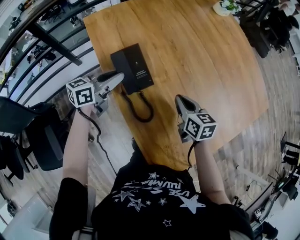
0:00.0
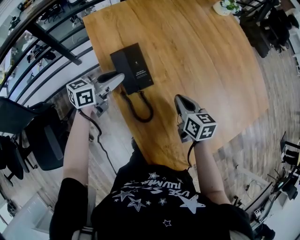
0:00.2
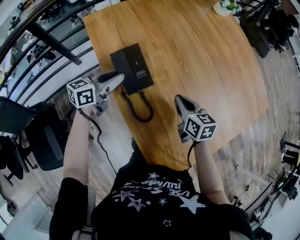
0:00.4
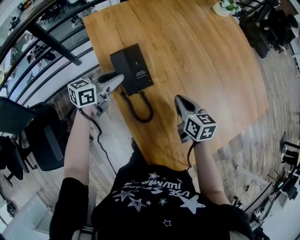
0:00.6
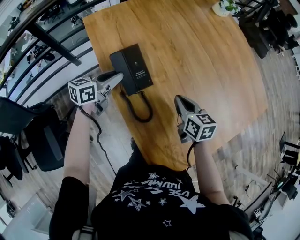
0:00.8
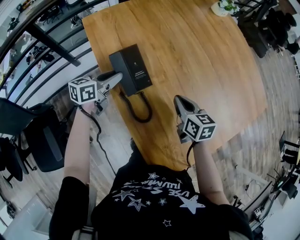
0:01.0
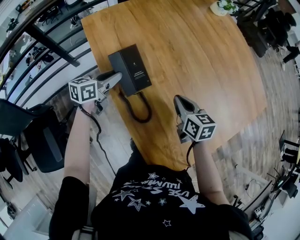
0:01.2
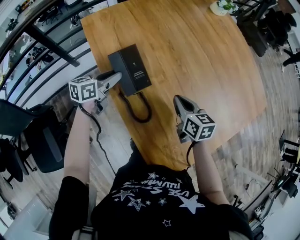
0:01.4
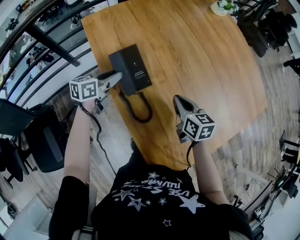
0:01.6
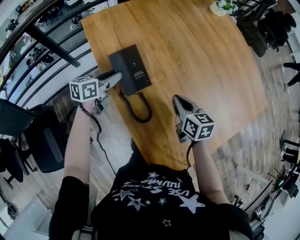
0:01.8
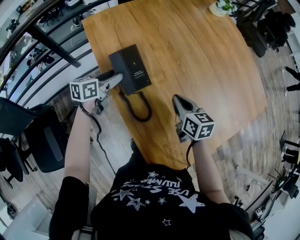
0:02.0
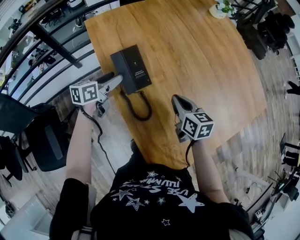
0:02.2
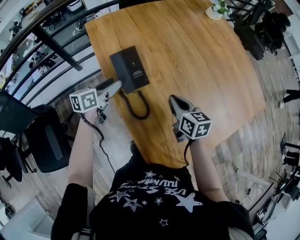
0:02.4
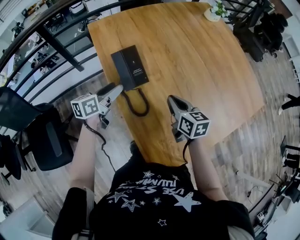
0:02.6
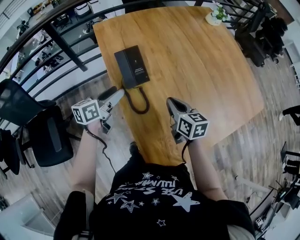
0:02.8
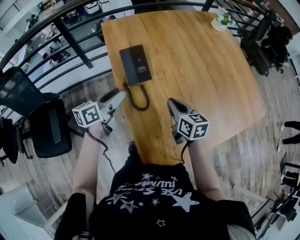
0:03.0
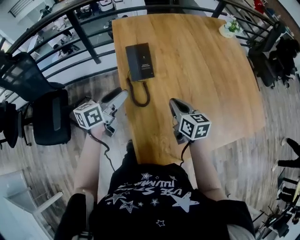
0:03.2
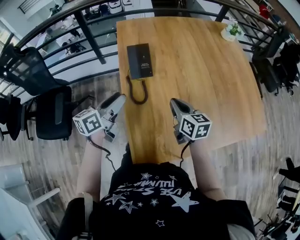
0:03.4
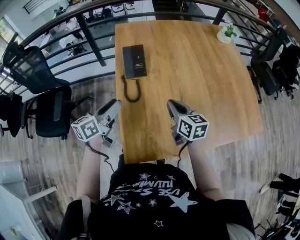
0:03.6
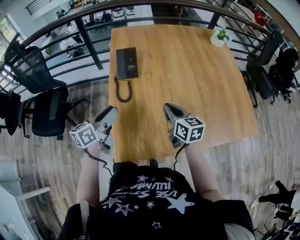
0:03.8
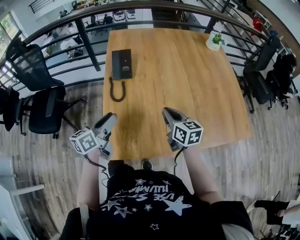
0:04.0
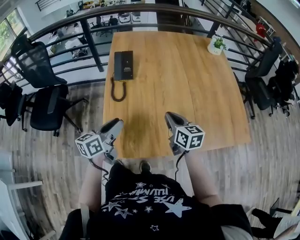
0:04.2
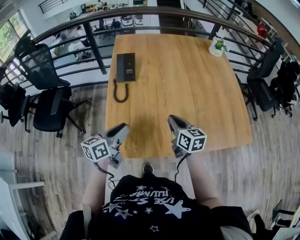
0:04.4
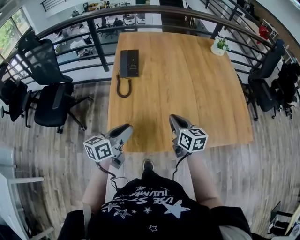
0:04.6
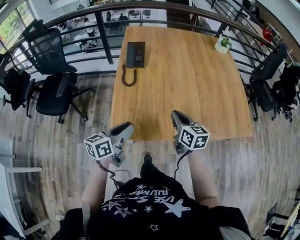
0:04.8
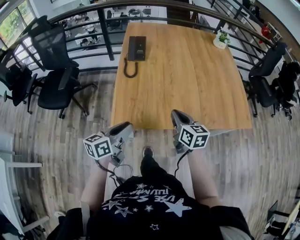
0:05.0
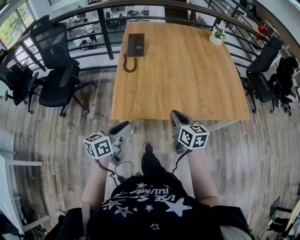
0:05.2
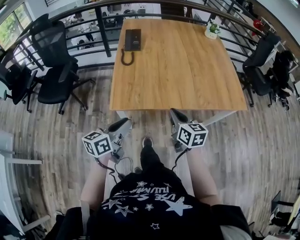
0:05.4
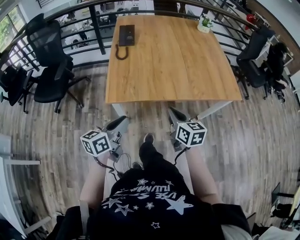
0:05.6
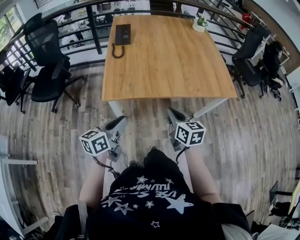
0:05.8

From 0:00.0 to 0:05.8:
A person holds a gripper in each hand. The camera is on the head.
From 0:00.0 to 0:01.4: The grippers stay close to where they were, moving slightly.
From 0:01.4 to 0:02.8: The left gripper shifts about 15 cm backward and upward, and opens, while the right gripper goes roughly 5 cm backward.
From 0:02.8 to 0:04.4: The left gripper goes approximately 35 cm backward and to the right, turns by about 20 degrees, and closes. Meanwhile the right gripper shifts approximately 20 cm to the right and backward.
From 0:04.4 to 0:05.8: Both grippers move backward, approximately 30 cm.

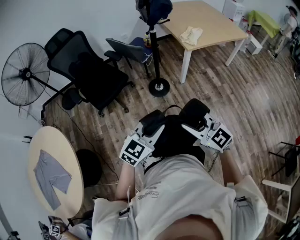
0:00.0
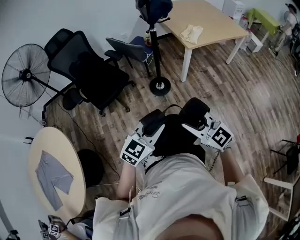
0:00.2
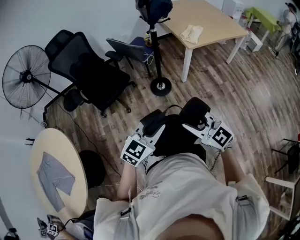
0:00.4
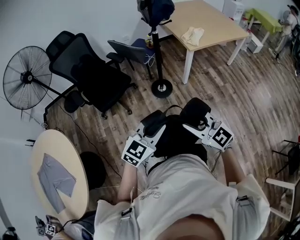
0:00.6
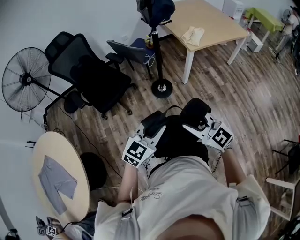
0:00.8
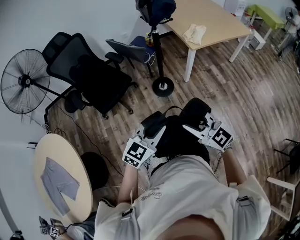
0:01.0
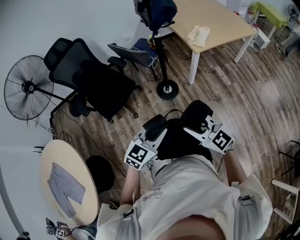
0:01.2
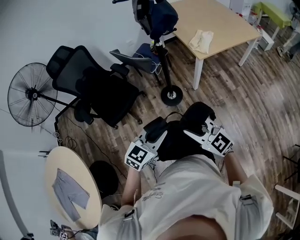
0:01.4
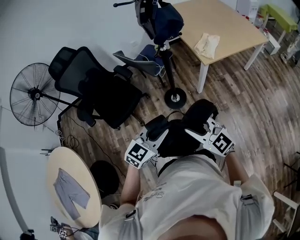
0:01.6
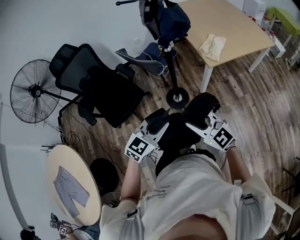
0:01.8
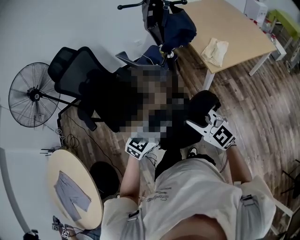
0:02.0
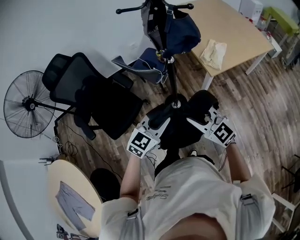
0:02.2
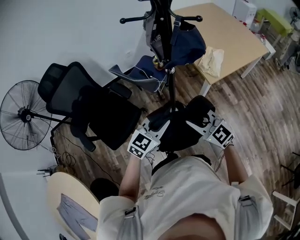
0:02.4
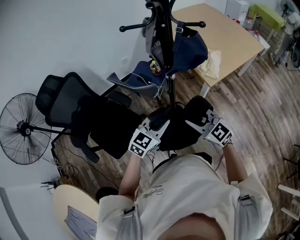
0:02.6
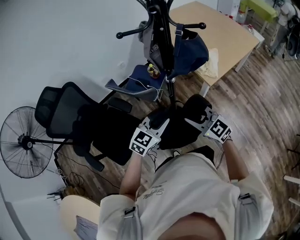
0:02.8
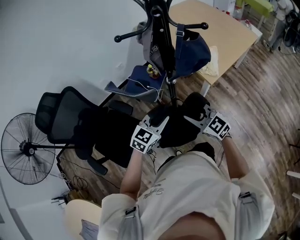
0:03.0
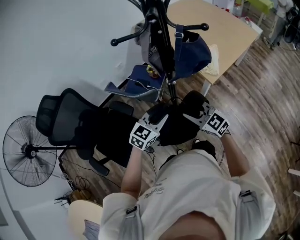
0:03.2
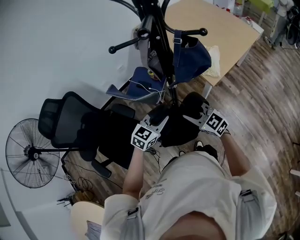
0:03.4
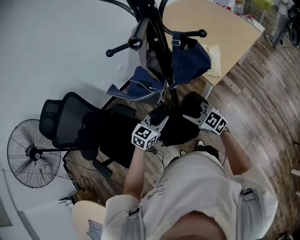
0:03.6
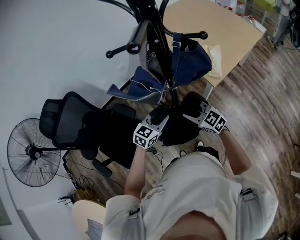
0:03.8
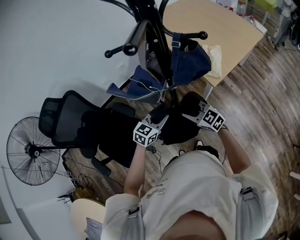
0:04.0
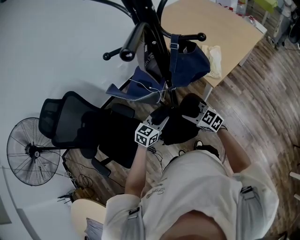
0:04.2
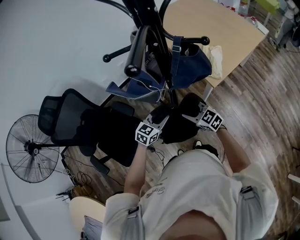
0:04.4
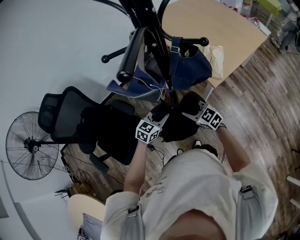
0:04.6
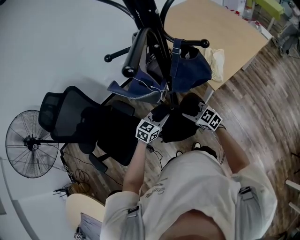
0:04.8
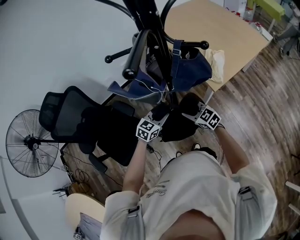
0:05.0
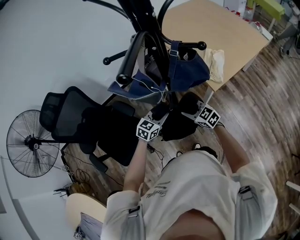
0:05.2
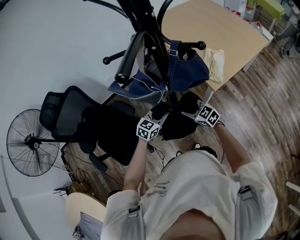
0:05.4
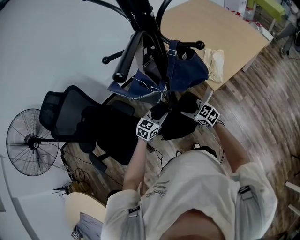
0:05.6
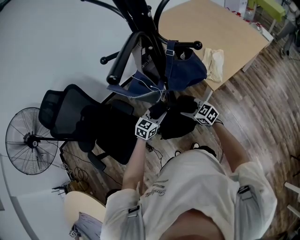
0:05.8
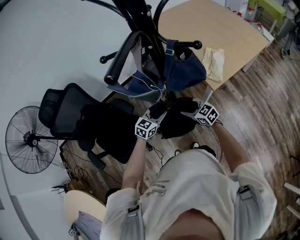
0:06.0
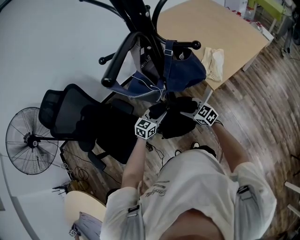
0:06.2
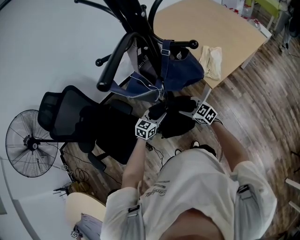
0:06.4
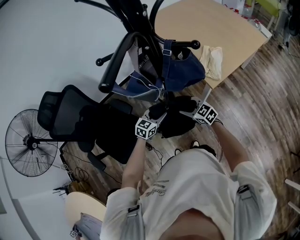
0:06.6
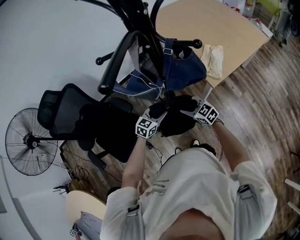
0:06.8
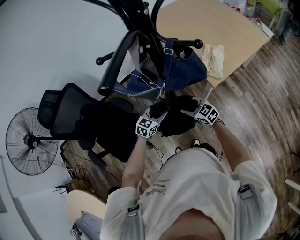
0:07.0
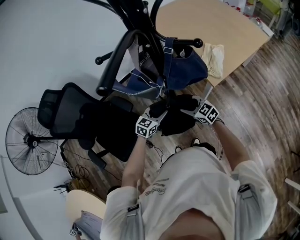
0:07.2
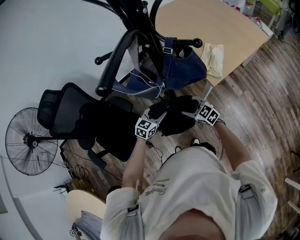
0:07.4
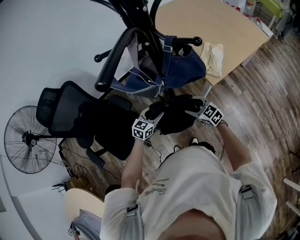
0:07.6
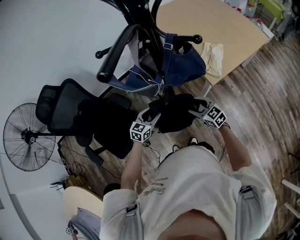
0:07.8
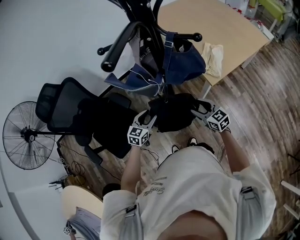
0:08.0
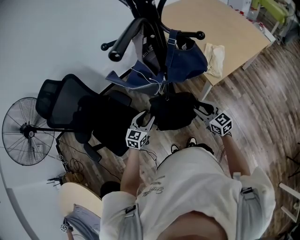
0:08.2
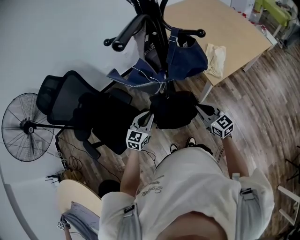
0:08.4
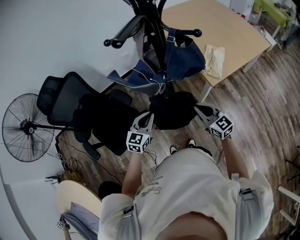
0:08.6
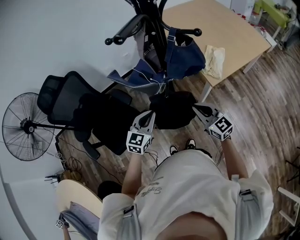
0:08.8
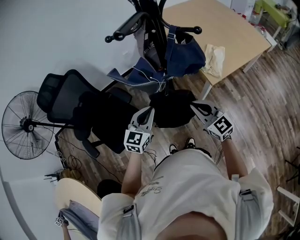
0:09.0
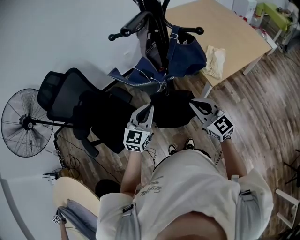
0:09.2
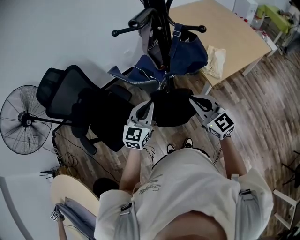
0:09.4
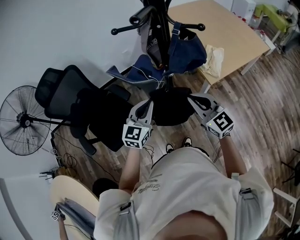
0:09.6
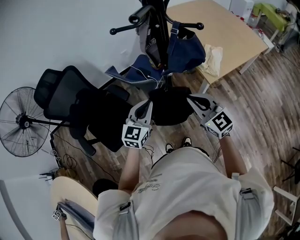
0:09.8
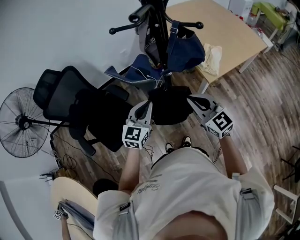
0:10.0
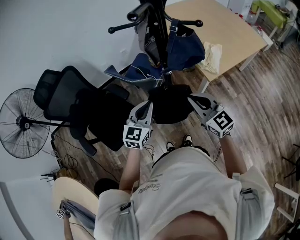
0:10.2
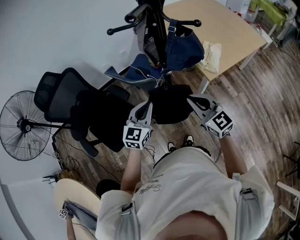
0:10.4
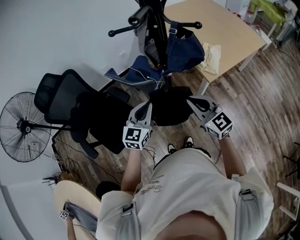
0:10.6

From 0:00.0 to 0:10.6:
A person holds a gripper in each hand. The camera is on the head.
From 0:00.0 to 0:01.6: The grippers both shift forward by approximately 20 cm.
From 0:01.6 to 0:03.0: The two grippers go some 30 cm forward.
From 0:03.0 to 0:04.6: The grippers both shift downward and forward by some 10 cm.
From 0:04.6 to 0:06.0: The right gripper opens up.
From 0:06.0 to 0:07.6: The left gripper opens its fingers.
From 0:07.6 to 0:09.0: The grippers both shift upward and backward by roughly 20 cm. The left gripper swivels about 20 degrees, and closes. The right gripper swivels approximately 20 degrees, and closes.
From 0:09.0 to 0:10.6: The grippers move only a little.

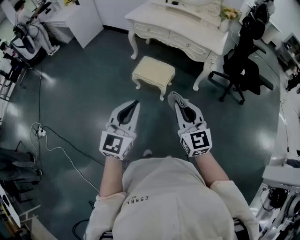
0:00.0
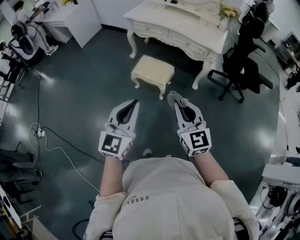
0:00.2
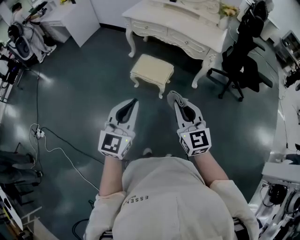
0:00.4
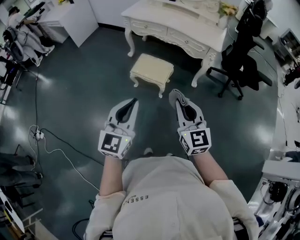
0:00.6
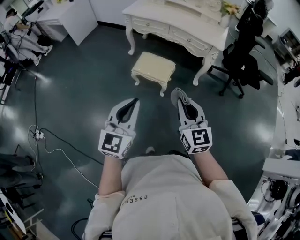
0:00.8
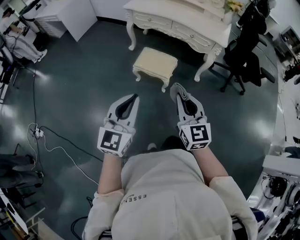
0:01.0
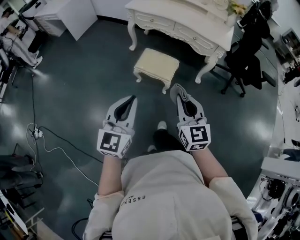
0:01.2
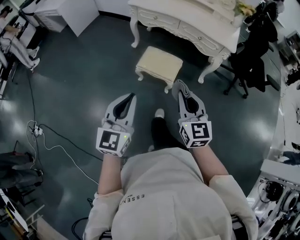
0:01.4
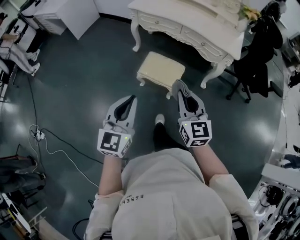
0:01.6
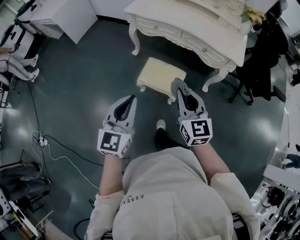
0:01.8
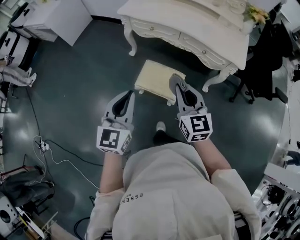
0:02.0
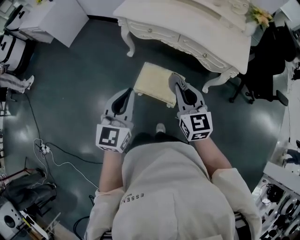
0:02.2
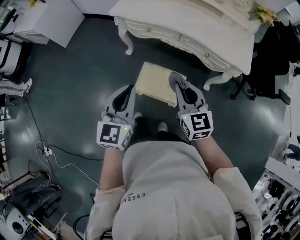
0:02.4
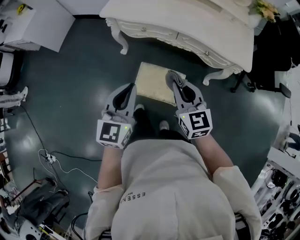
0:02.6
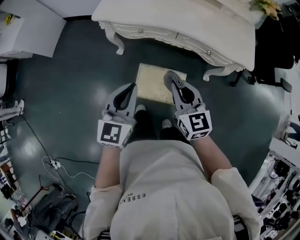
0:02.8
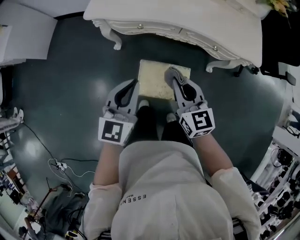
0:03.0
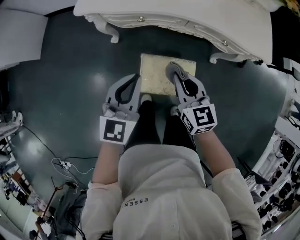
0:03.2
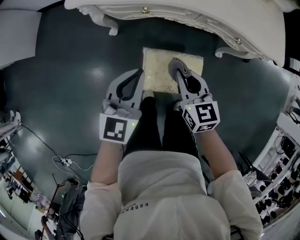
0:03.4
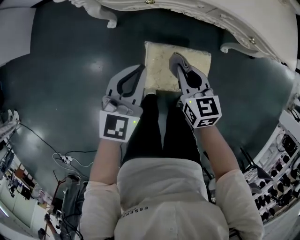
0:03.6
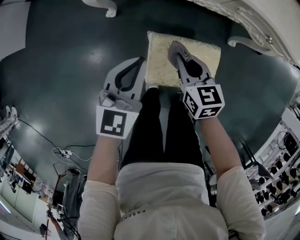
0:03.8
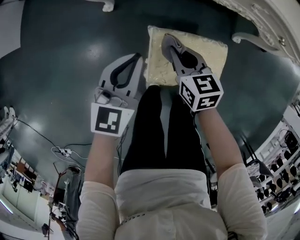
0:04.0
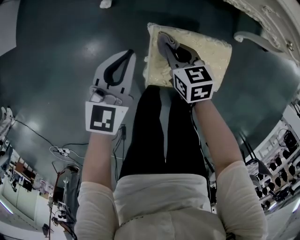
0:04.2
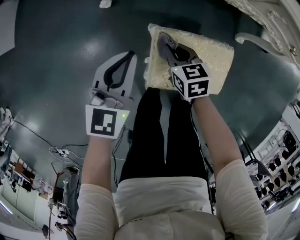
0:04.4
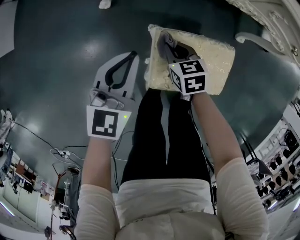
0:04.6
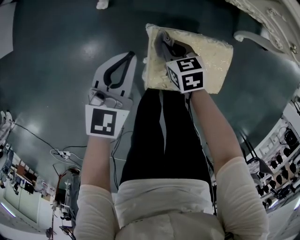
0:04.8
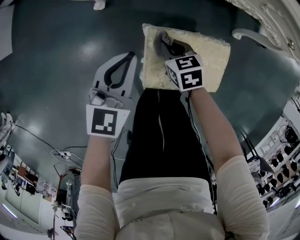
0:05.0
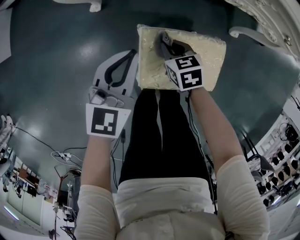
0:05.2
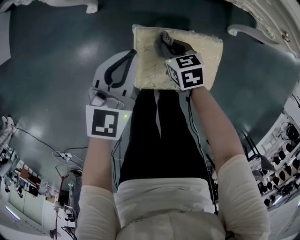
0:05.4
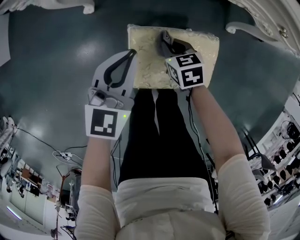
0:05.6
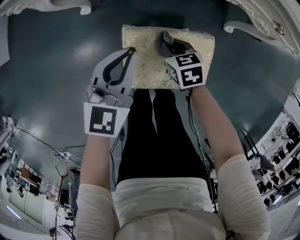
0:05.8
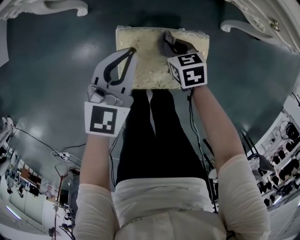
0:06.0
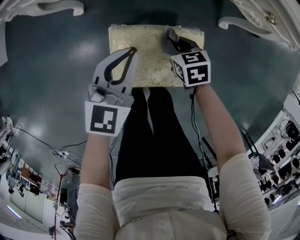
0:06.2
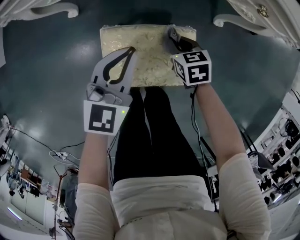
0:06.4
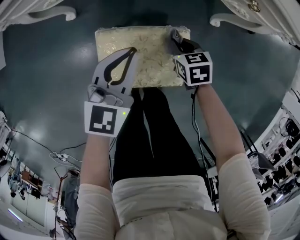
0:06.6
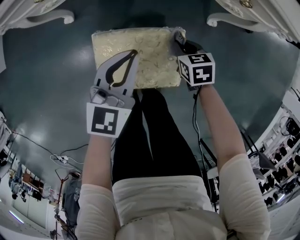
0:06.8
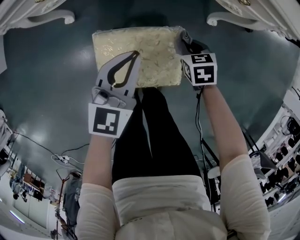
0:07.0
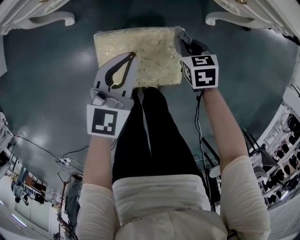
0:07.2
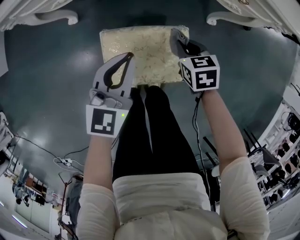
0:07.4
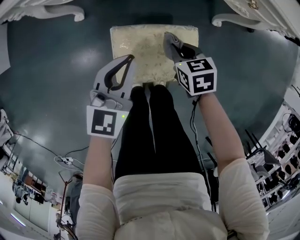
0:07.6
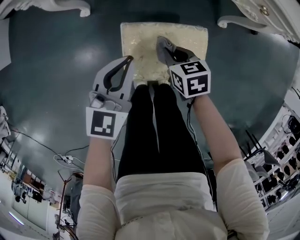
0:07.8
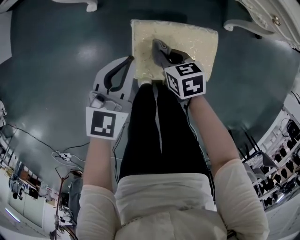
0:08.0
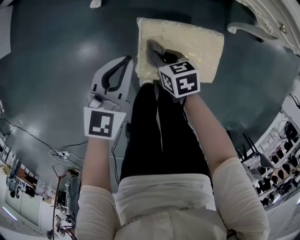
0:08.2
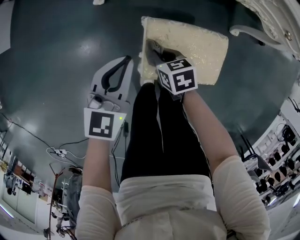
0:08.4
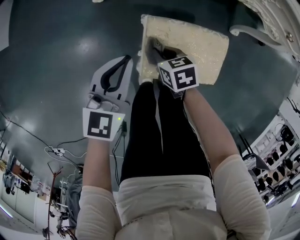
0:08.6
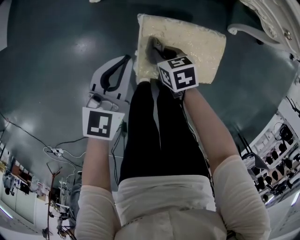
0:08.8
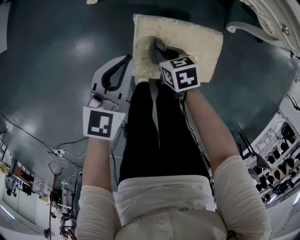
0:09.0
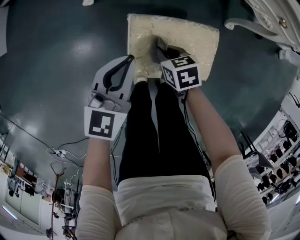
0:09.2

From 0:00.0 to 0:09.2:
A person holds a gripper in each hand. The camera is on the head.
From 0:00.0 to 0:01.6: The two grippers go roughly 20 cm forward and to the left.
From 0:01.6 to 0:03.0: Both grippers move forward, some 40 cm. The left gripper changes its angle by some 20 degrees.
From 0:03.0 to 0:04.6: Both grippers move downward, some 40 cm. The right gripper angles its fingers downward, by approximately 30 degrees.
From 0:04.6 to 0:06.2: The two grippers go some 15 cm to the right.
From 0:06.2 to 0:07.6: The right gripper heads upward, covering about 5 cm, and goes to the right and returns, some 10 cm each way; the left gripper moves about 5 cm to the right and comes back.
From 0:07.6 to 0:09.2: The right gripper goes roughly 15 cm to the left and downward. Meanwhile the left gripper moves to the left, about 10 cm.
